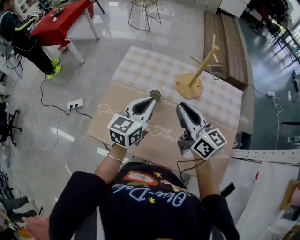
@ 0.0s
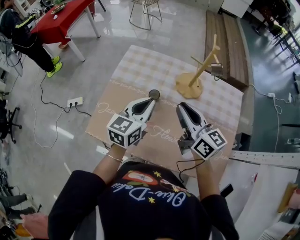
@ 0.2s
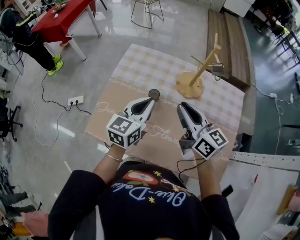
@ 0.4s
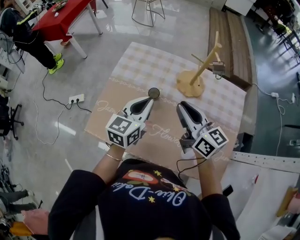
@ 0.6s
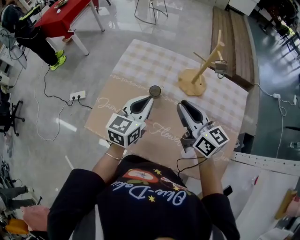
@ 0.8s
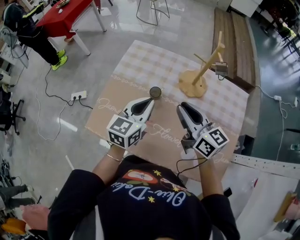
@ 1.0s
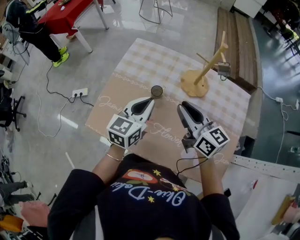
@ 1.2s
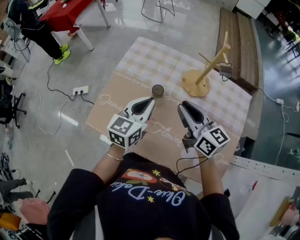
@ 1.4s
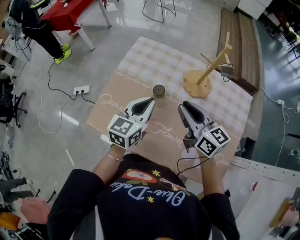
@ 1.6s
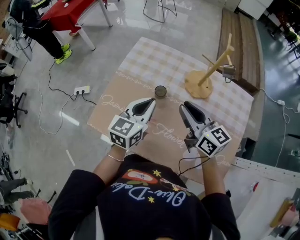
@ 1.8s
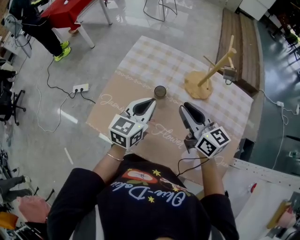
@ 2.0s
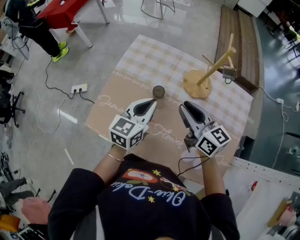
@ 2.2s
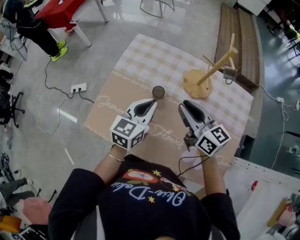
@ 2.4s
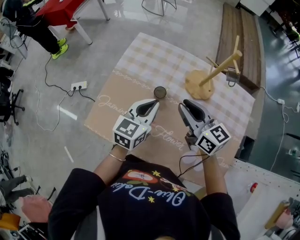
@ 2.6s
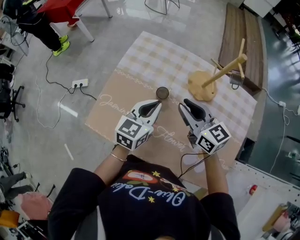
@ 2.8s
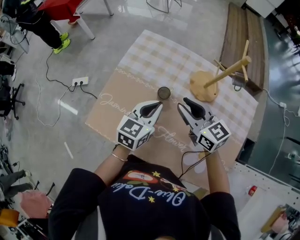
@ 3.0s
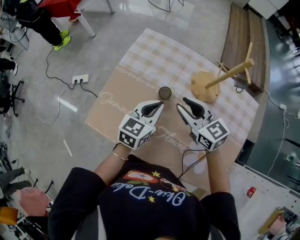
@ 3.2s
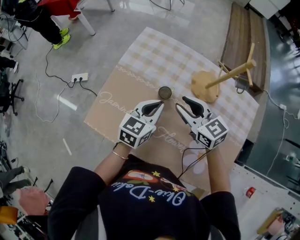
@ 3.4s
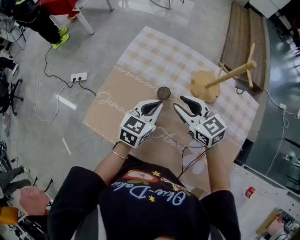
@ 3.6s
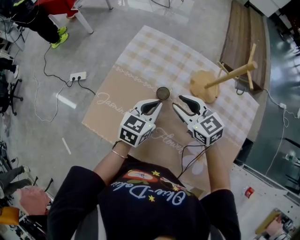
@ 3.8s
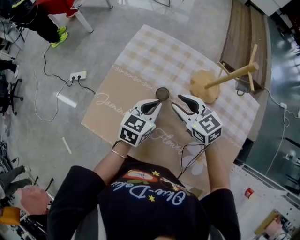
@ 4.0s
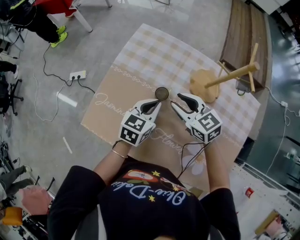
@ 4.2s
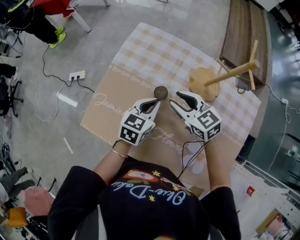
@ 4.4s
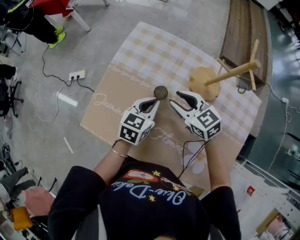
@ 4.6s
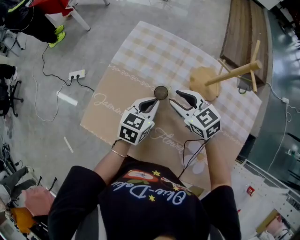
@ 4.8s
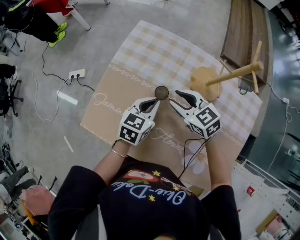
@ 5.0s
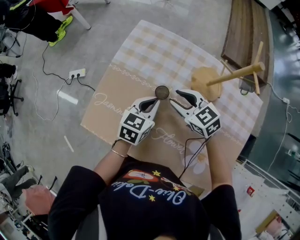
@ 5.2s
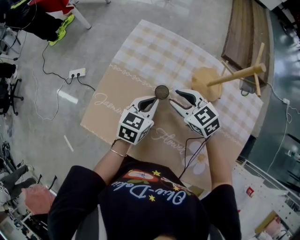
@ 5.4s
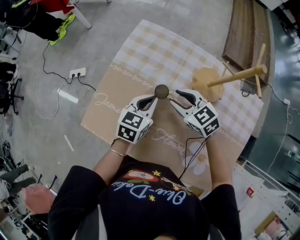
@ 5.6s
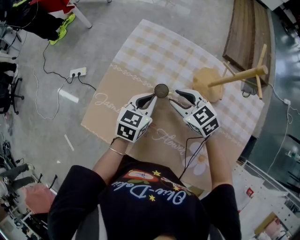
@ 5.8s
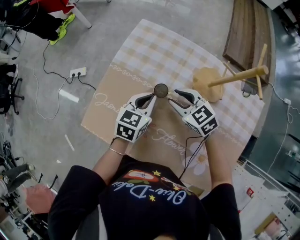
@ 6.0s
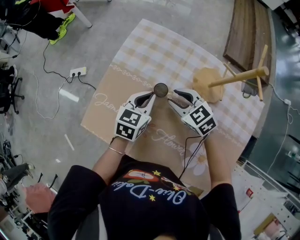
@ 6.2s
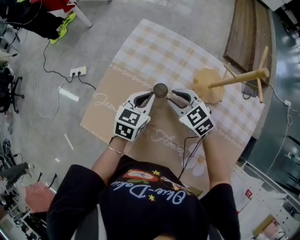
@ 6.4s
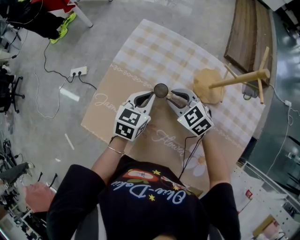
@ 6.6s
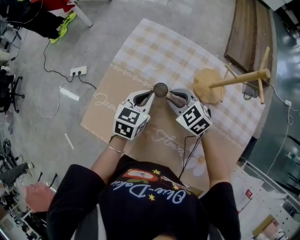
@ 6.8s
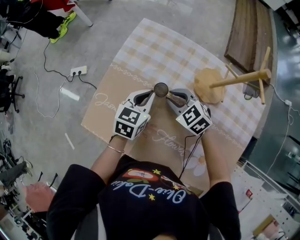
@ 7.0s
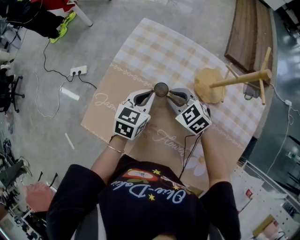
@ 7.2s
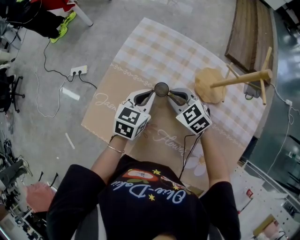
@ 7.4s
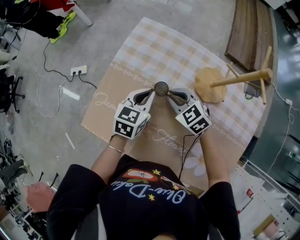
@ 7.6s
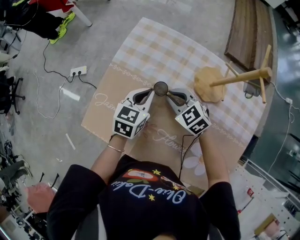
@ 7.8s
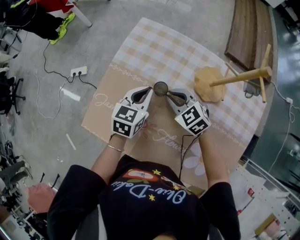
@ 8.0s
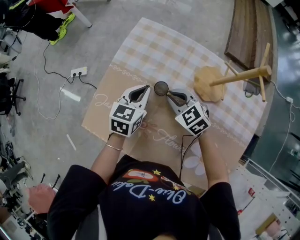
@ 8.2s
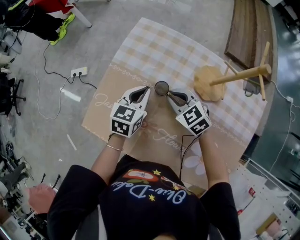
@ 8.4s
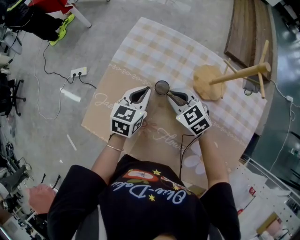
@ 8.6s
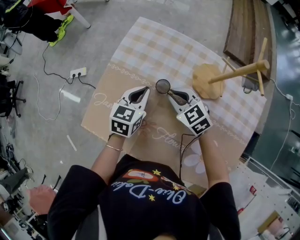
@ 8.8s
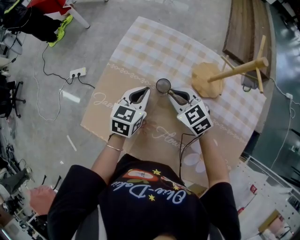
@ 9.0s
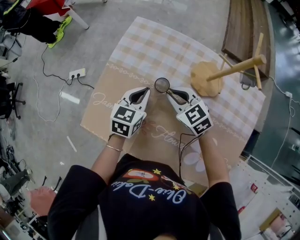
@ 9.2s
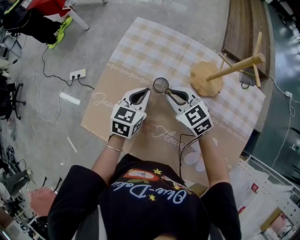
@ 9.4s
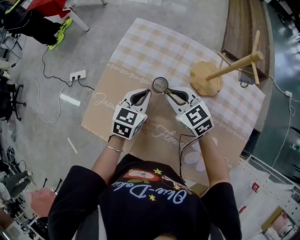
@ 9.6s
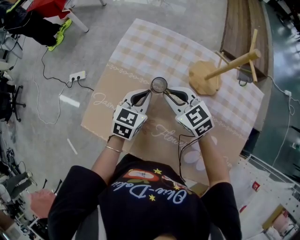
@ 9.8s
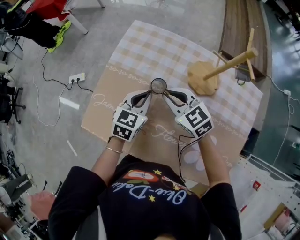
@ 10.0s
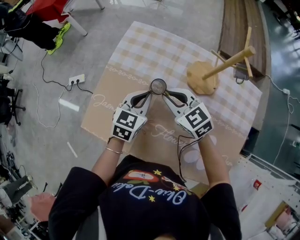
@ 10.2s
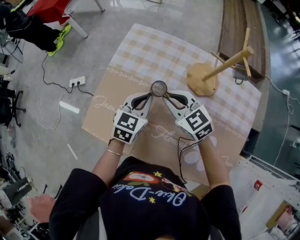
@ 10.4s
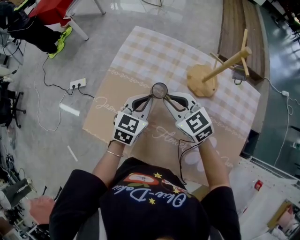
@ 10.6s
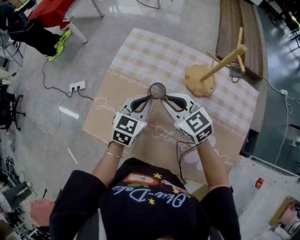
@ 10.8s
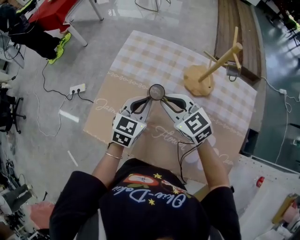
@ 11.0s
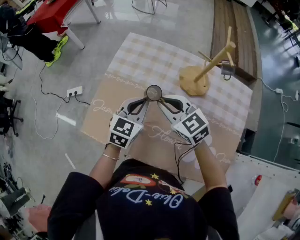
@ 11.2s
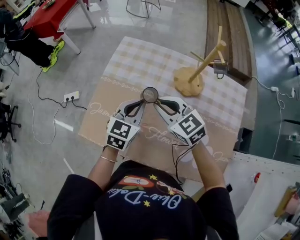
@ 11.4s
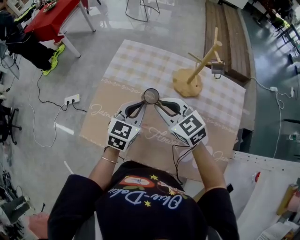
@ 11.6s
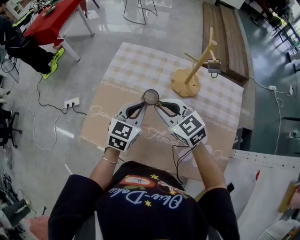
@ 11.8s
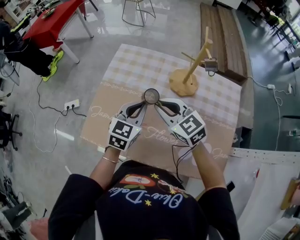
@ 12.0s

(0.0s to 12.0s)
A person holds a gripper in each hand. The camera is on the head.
0.0s - 1.6s: The grippers move only a little.
1.6s - 3.0s: The left gripper shifts by approximately 5 cm; the right gripper moves some 5 cm.
3.0s - 4.4s: Both grippers move downward, approximately 5 cm.
4.4s - 6.0s: There are only small adjustments of the grippers.
6.0s - 7.6s: The right gripper closes up.
7.6s - 9.0s: There are only small adjustments of the grippers.
9.0s - 10.4s: The right gripper is displaced upward by some 5 cm.
10.4s - 12.0s: The two grippers go approximately 5 cm upward.

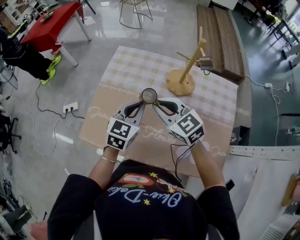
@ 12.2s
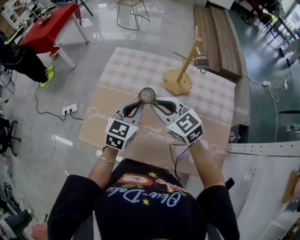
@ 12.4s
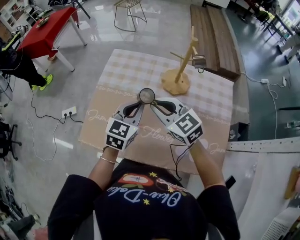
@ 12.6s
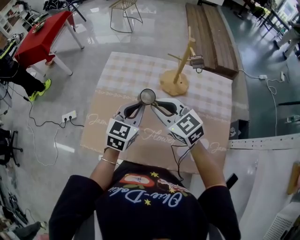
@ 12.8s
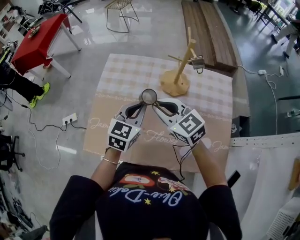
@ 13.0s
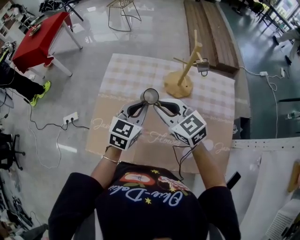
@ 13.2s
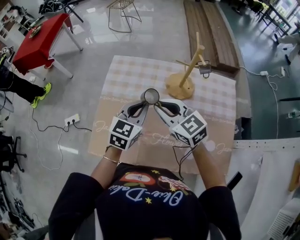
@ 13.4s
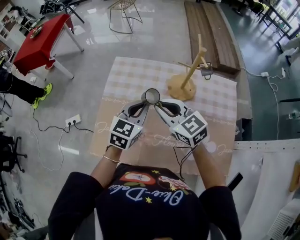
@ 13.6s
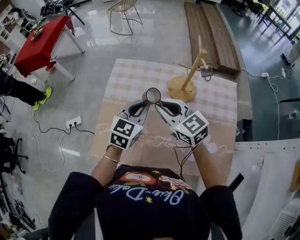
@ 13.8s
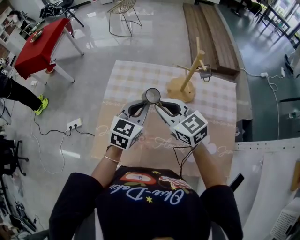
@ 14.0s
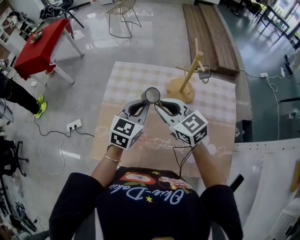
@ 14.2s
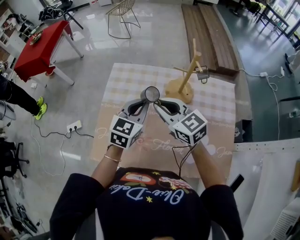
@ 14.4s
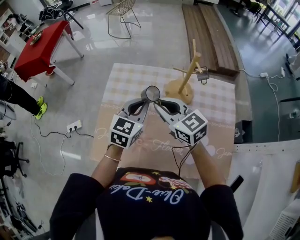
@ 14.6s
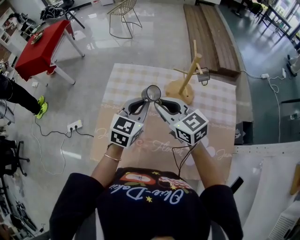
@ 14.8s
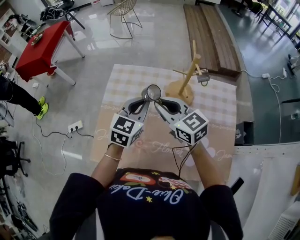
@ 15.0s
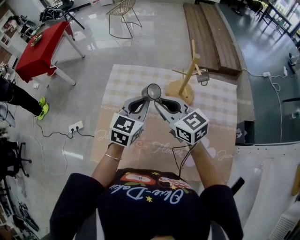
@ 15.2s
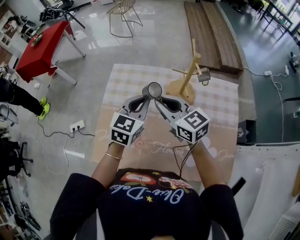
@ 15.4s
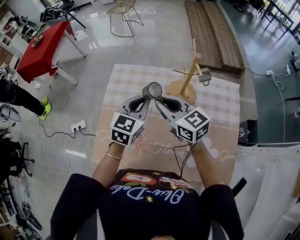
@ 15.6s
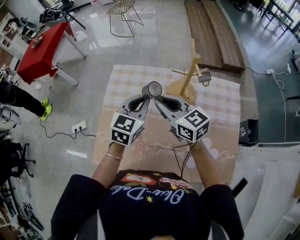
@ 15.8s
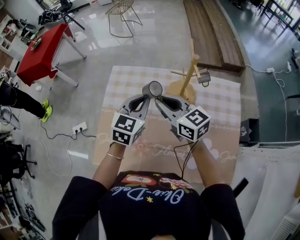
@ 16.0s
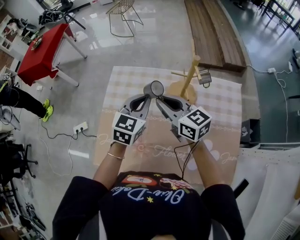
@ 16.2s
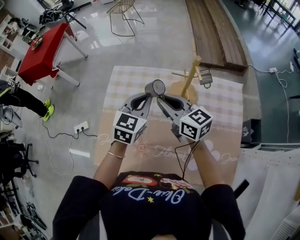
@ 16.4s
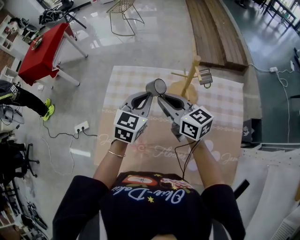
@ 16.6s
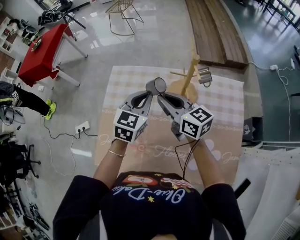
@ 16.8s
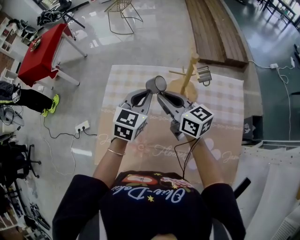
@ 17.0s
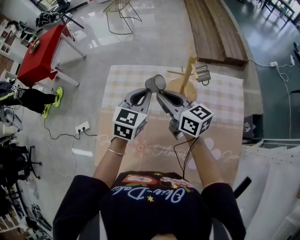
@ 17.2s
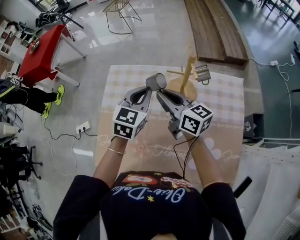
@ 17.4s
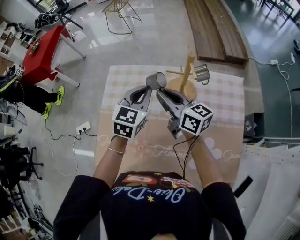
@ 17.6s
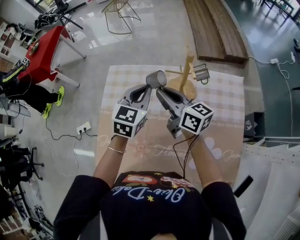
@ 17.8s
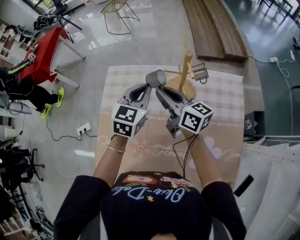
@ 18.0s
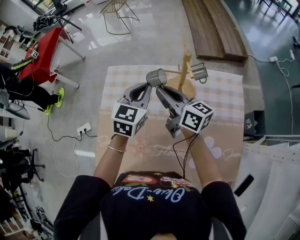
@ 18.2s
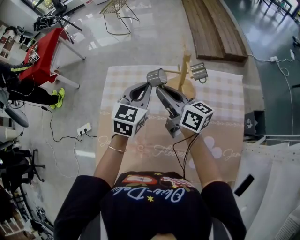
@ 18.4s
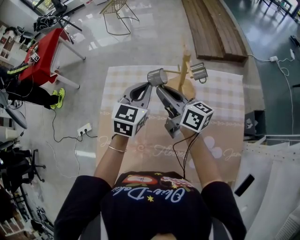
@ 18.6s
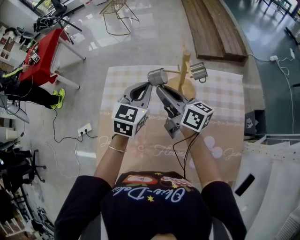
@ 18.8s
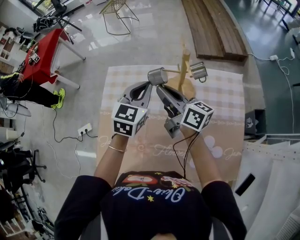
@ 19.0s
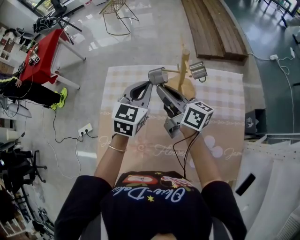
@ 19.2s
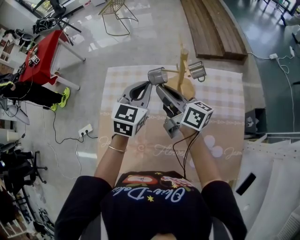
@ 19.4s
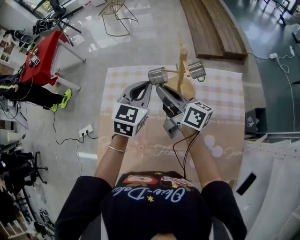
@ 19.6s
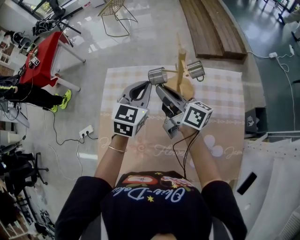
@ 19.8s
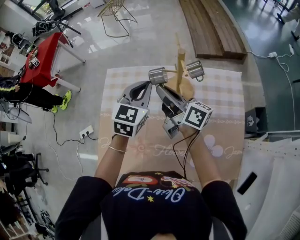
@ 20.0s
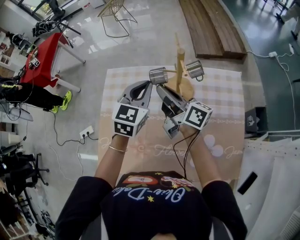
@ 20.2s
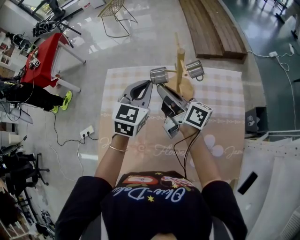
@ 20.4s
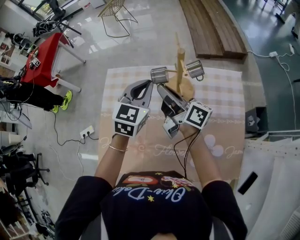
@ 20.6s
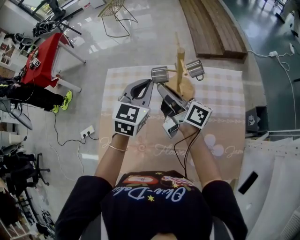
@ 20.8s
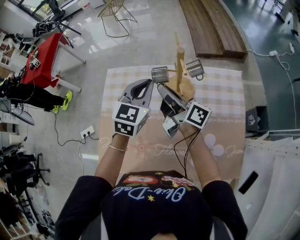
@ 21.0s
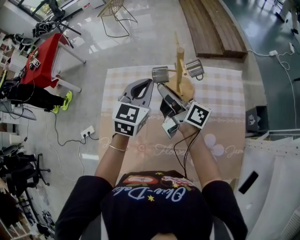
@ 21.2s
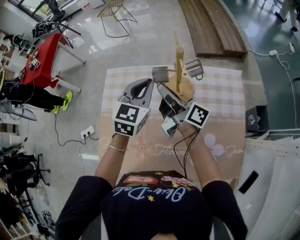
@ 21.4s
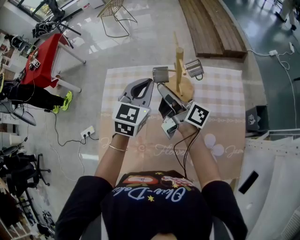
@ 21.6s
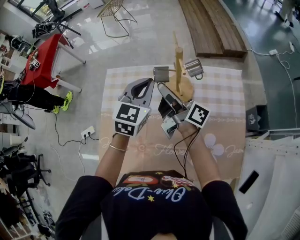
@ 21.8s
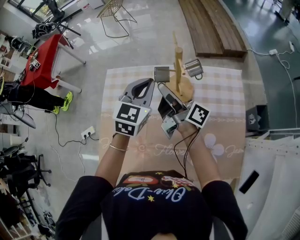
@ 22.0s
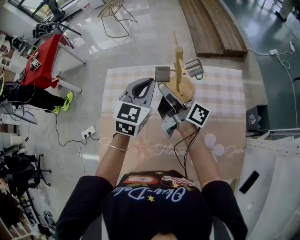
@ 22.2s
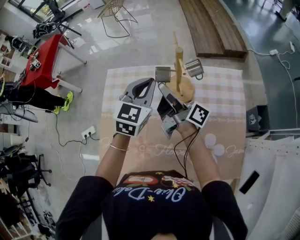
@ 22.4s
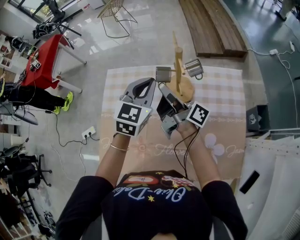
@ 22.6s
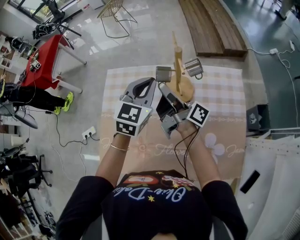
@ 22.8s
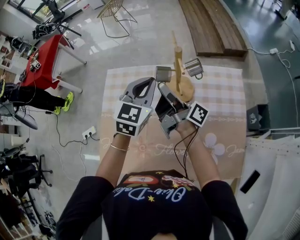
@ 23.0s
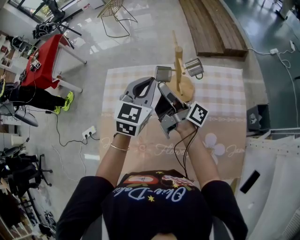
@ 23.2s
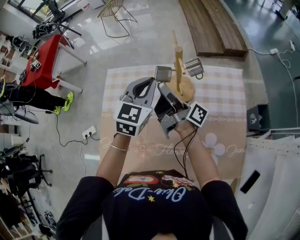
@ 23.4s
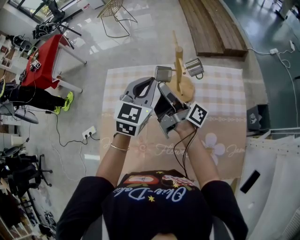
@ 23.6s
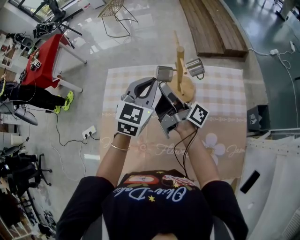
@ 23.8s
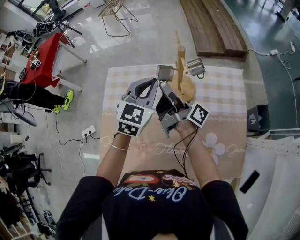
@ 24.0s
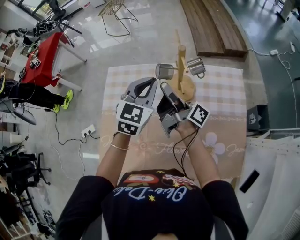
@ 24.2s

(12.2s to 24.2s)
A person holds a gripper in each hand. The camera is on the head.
12.2s - 13.8s: The left gripper shifts approximately 5 cm forward. Meanwhile the right gripper moves some 5 cm.
13.8s - 15.2s: The grippers make only small movements.
15.2s - 16.6s: The grippers stay close to where they were, moving slightly.
16.6s - 18.2s: The grippers move only a little.
18.2s - 19.8s: The grippers stay close to where they were, moving slightly.
19.8s - 21.2s: The grippers make only small movements.
21.2s - 22.6s: The grippers move only a little.
22.6s - 24.2s: The grippers move only a little.
